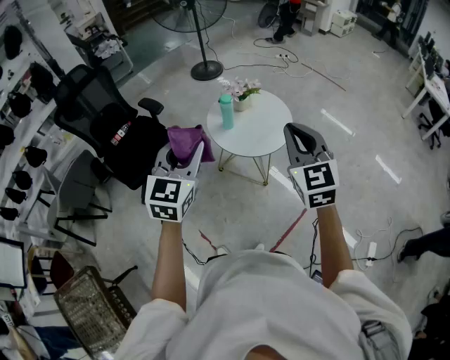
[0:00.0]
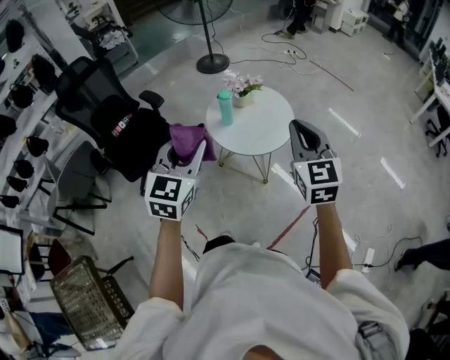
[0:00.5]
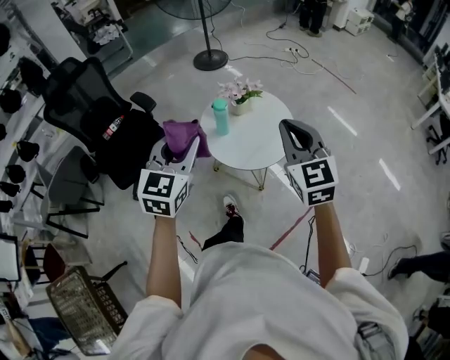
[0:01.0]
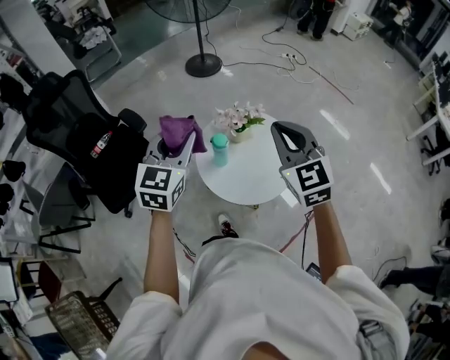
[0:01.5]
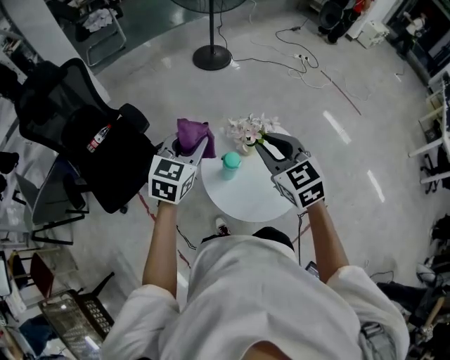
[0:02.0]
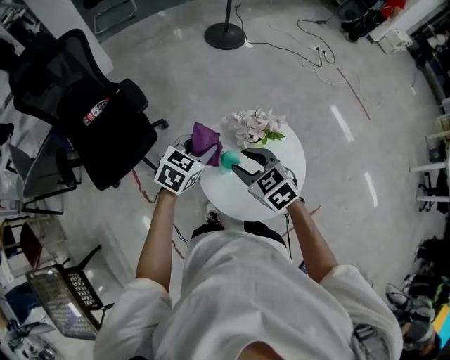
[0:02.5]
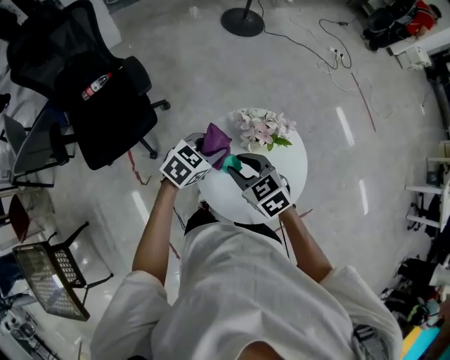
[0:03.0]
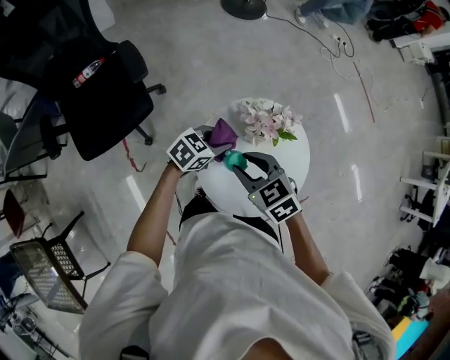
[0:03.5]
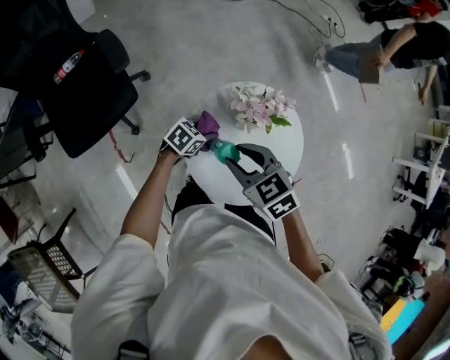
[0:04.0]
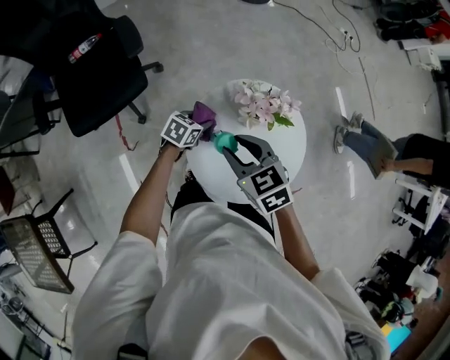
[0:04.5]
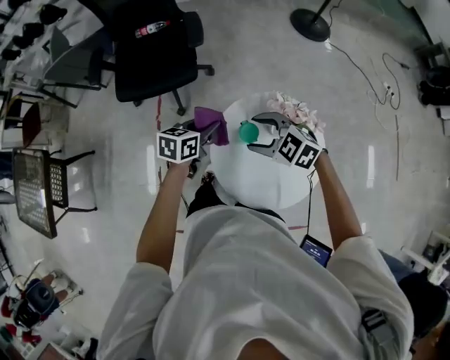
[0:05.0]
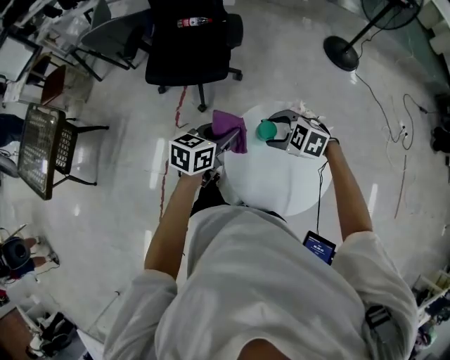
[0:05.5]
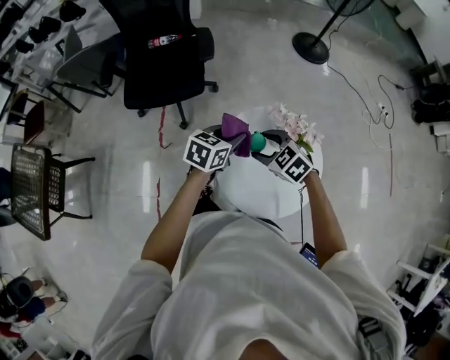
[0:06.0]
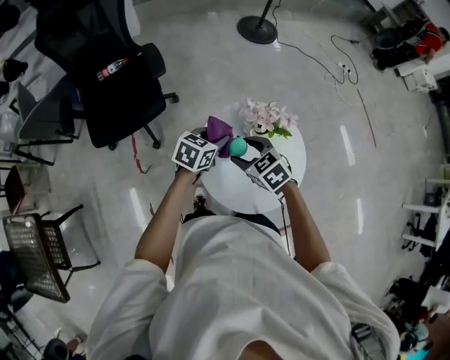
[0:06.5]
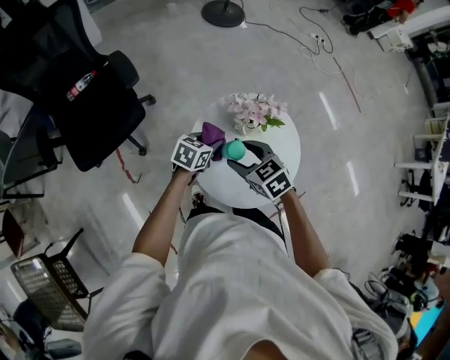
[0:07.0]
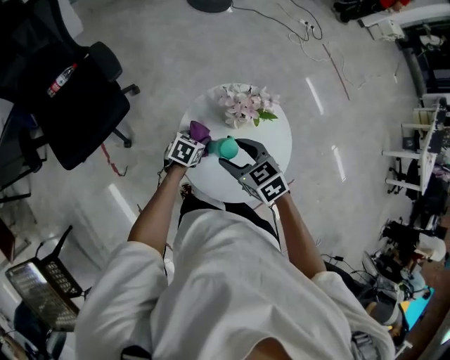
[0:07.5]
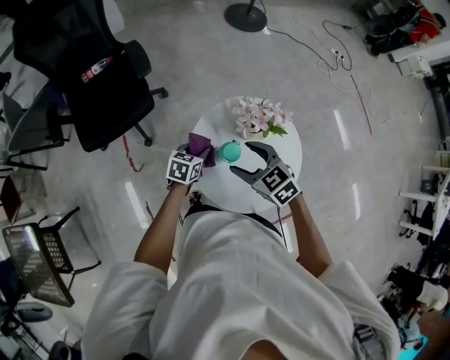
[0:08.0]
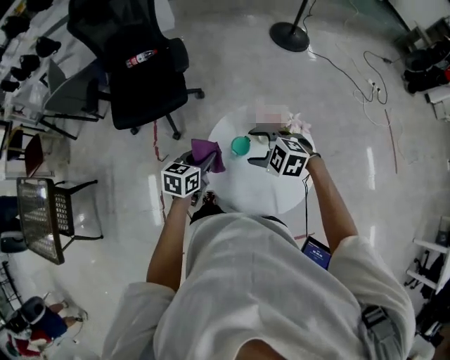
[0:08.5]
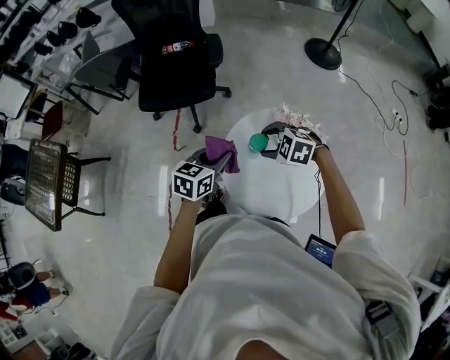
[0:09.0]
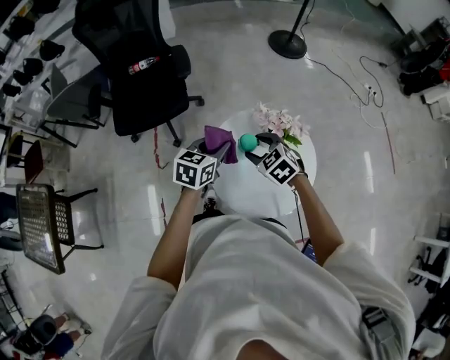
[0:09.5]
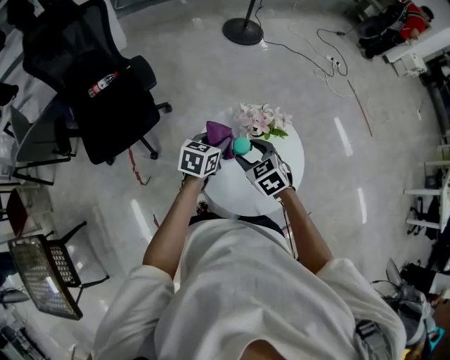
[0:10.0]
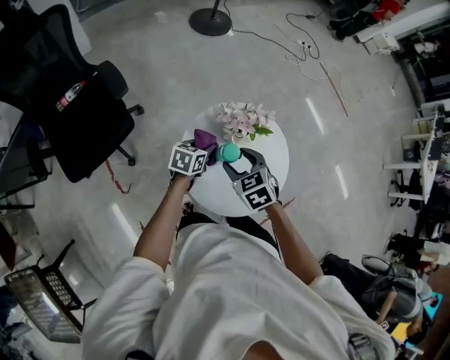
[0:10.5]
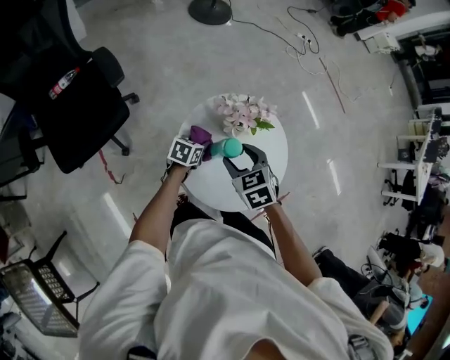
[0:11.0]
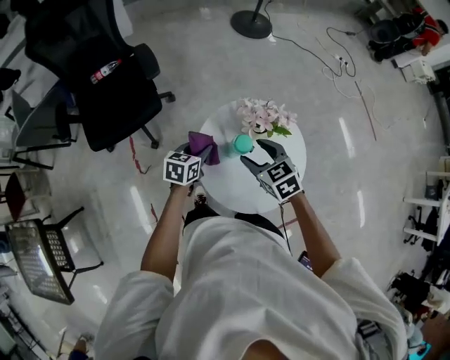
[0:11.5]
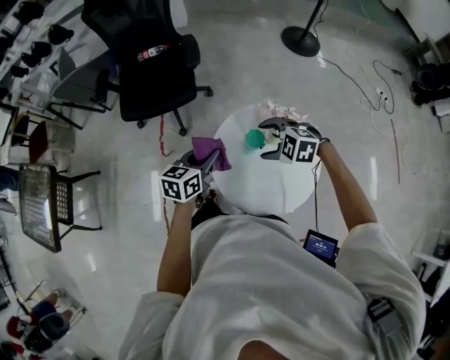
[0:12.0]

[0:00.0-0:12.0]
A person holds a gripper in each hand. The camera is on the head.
0:00.0 to 0:02.0: The pair of grippers is taken forward, about 40 cm. The right gripper changes its angle by some 30 degrees.
0:02.0 to 0:04.0: The right gripper moves downward, roughly 20 cm, and changes its angle by about 30 degrees. The left gripper is displaced downward by about 35 cm, and changes its angle by some 50 degrees.
0:04.0 to 0:06.0: The left gripper heads upward, covering roughly 20 cm, and changes its angle by approximately 50 degrees. The right gripper changes place by roughly 5 cm, and rotates some 40 degrees.
0:06.0 to 0:08.0: The left gripper moves downward, approximately 15 cm. The right gripper rotates about 30 degrees.
0:08.0 to 0:10.0: The left gripper goes about 10 cm upward.
0:10.0 to 0:12.0: The left gripper goes downward and returns, approximately 15 cm each way, and turns by about 30 degrees, while the right gripper swivels some 60 degrees.

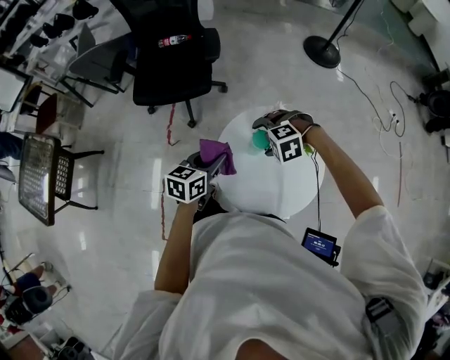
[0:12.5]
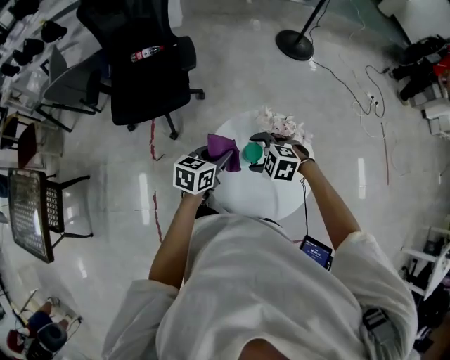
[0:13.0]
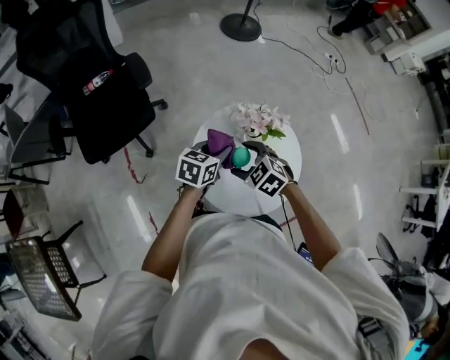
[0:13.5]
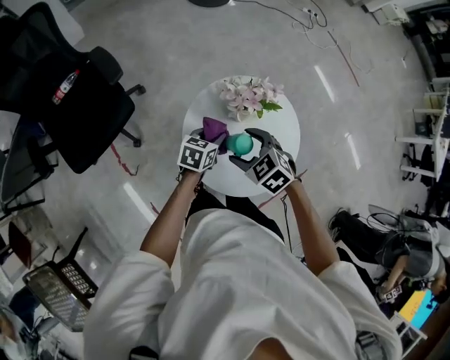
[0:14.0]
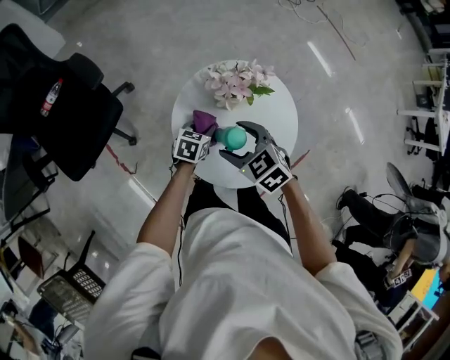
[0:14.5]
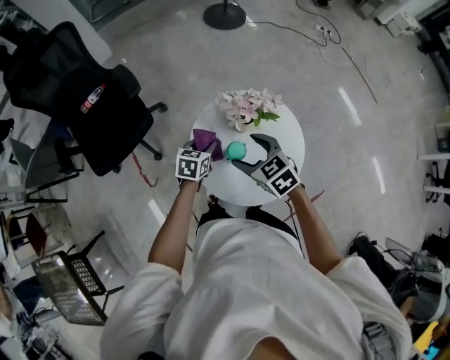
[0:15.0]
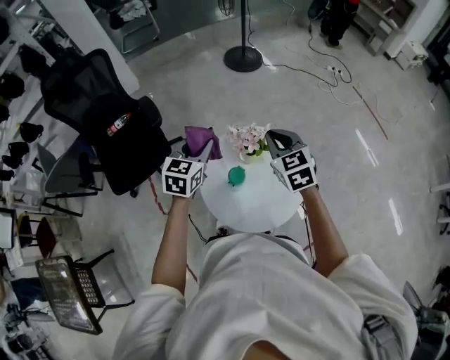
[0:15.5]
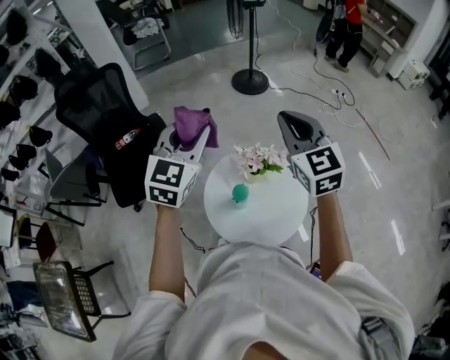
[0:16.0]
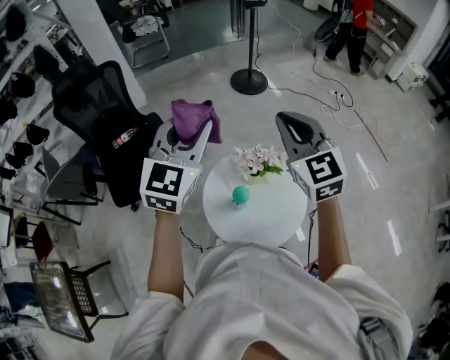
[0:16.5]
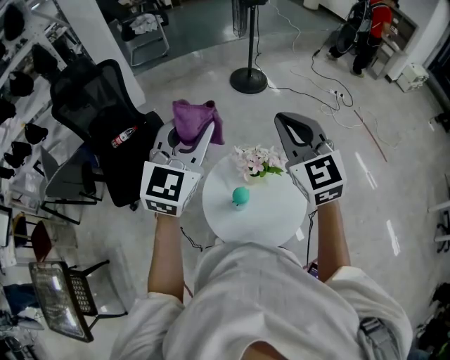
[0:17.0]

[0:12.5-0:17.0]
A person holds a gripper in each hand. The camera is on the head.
0:12.5 to 0:14.5: The right gripper rotates around the line of its fingers by about 90 degrees, clockwise from behind. Meanwhile the left gripper heads downward, covering roughly 20 cm, and swivels roughly 50 degrees.
0:14.5 to 0:17.0: The grippers both shift upward by approximately 50 cm. The right gripper tilts its fingers about 40 degrees upward, and closes its fingers, while the left gripper angles its fingers upward, by some 40 degrees.

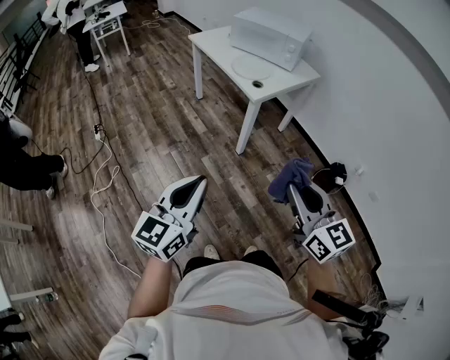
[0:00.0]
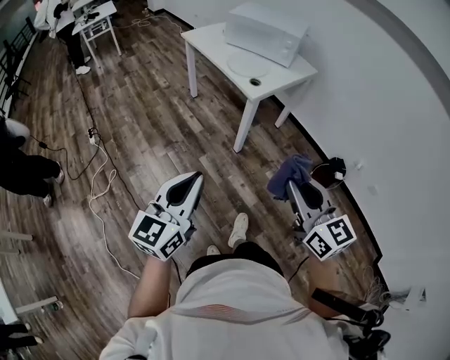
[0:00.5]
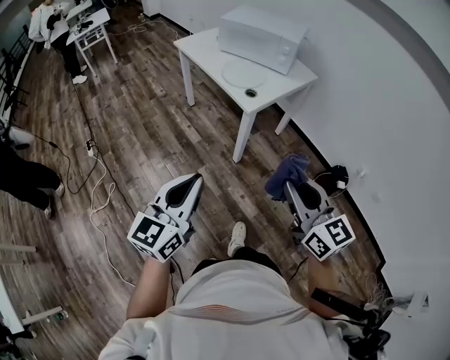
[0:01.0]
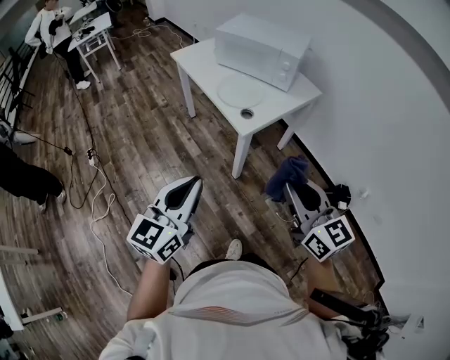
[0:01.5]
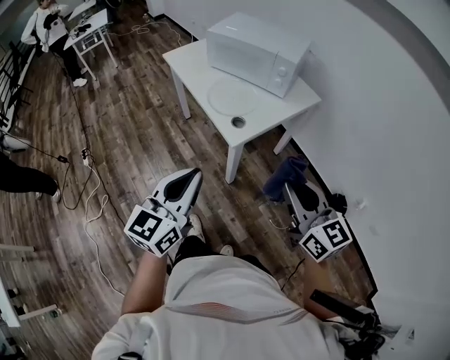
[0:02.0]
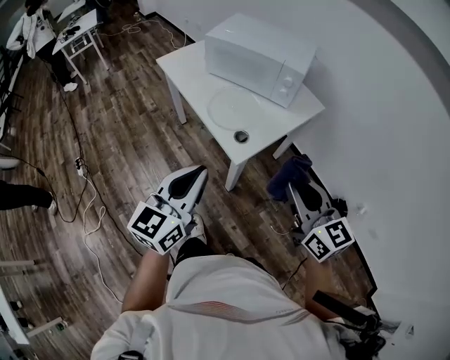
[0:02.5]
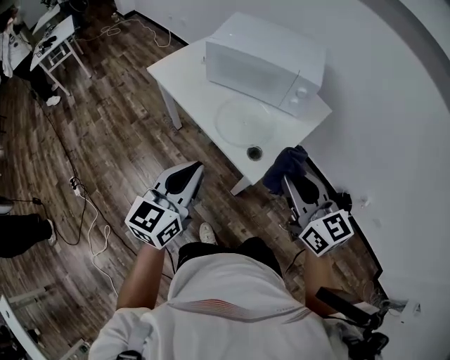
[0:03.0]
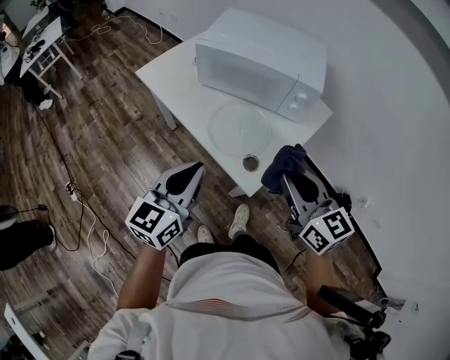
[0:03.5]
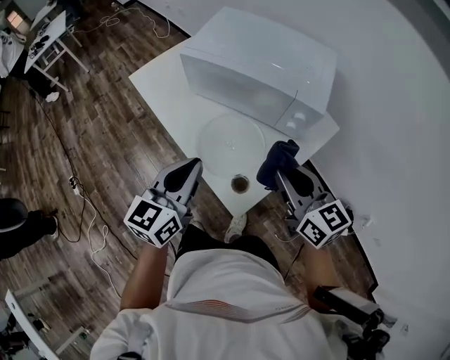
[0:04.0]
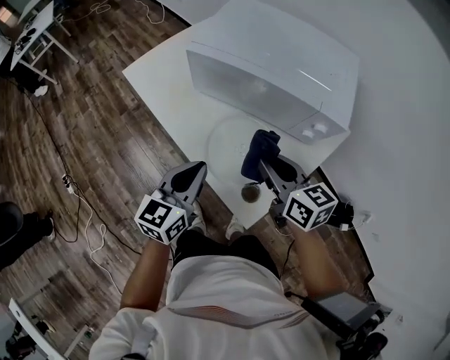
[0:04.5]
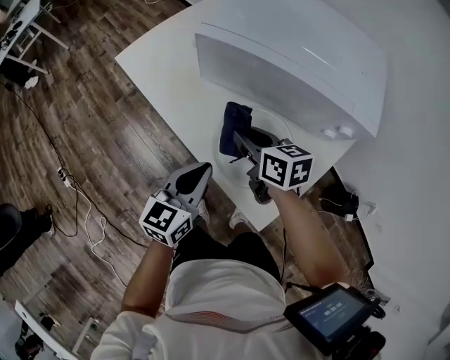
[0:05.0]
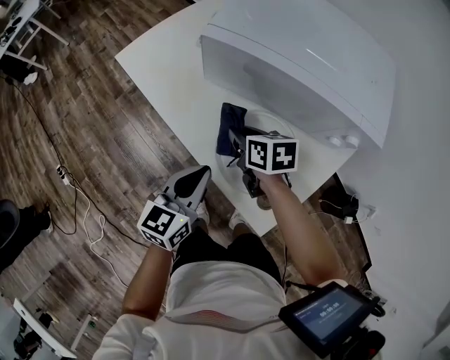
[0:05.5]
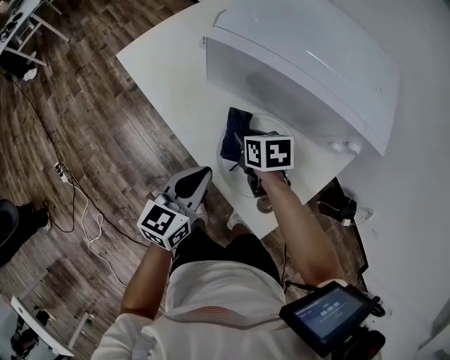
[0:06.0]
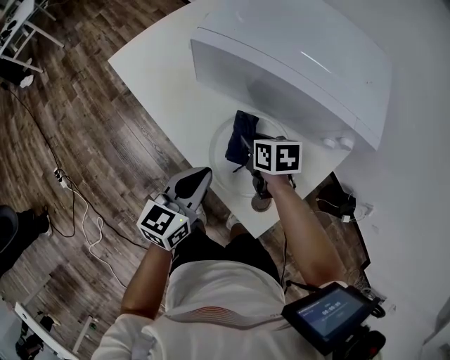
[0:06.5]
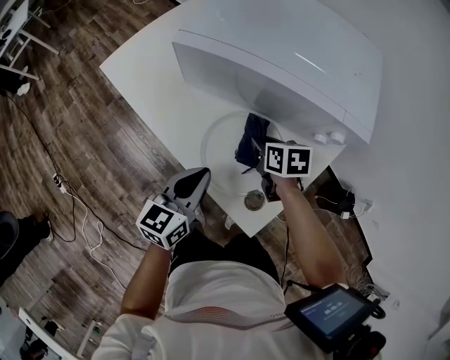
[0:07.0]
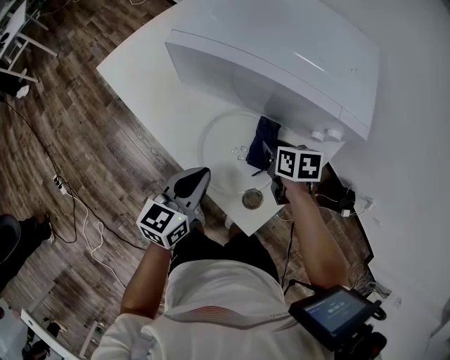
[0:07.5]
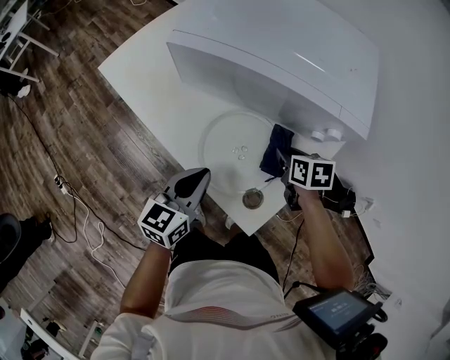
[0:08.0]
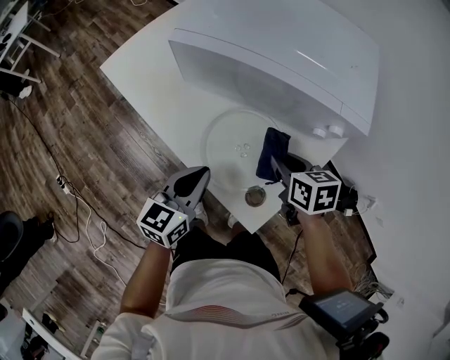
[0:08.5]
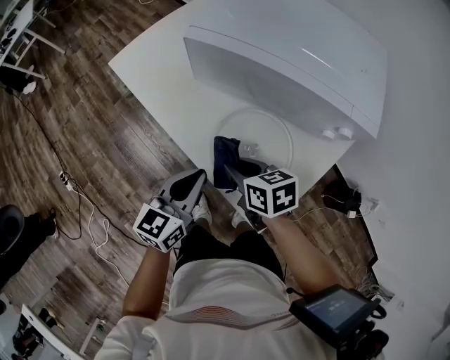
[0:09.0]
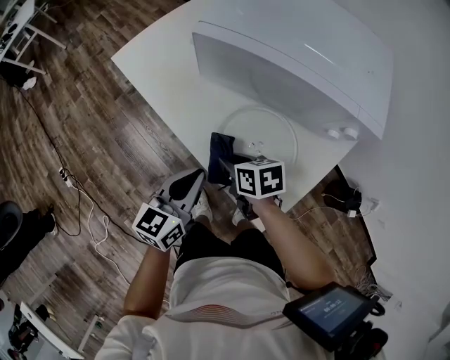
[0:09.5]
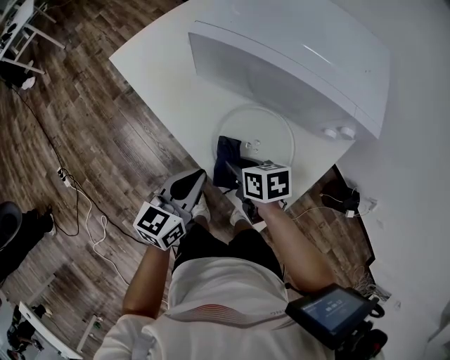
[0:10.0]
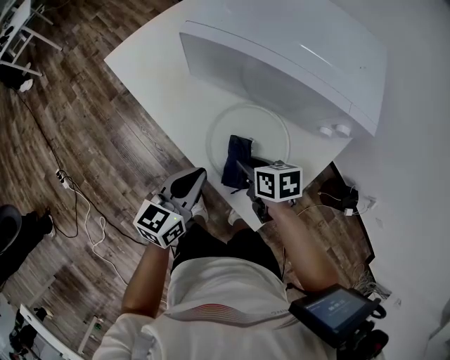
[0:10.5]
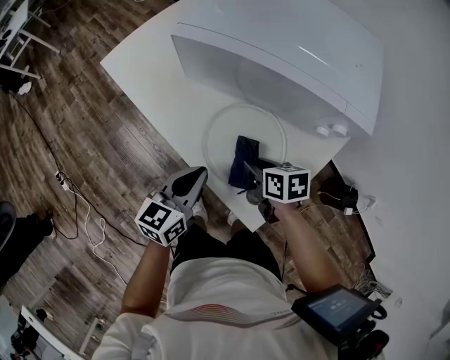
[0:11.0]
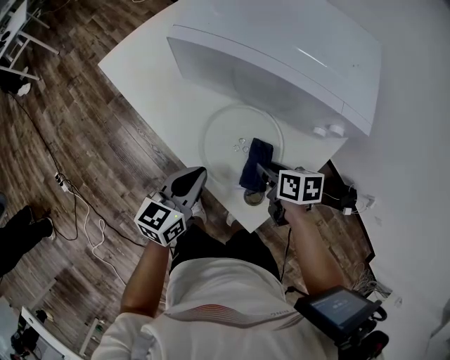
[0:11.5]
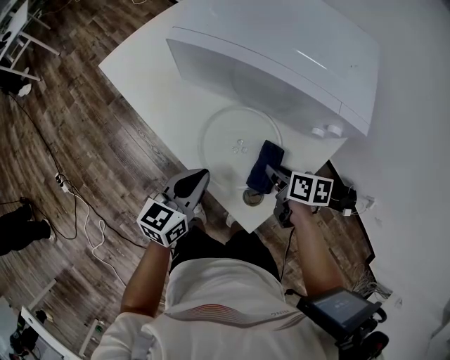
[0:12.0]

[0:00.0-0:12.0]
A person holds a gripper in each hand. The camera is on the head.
0:00.0 to 0:02.0: The grippers both shift forward by roughly 35 cm.
0:02.0 to 0:04.0: The two grippers go approximately 40 cm forward.
0:04.0 to 0:06.0: The left gripper is displaced downward and forward by about 20 cm. The right gripper goes roughly 35 cm downward, forward and to the left, and angles its fingers downward, by roughly 40 degrees.
0:06.0 to 0:08.0: The left gripper shifts roughly 5 cm to the right, while the right gripper shifts approximately 20 cm to the right.
0:08.0 to 0:10.0: The right gripper travels to the left by about 20 cm.
0:10.0 to 0:12.0: The right gripper is displaced to the right by about 15 cm.
